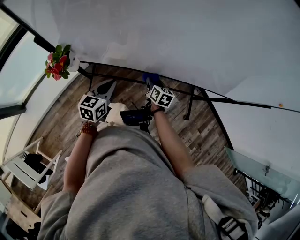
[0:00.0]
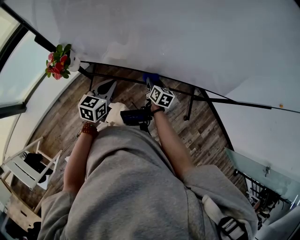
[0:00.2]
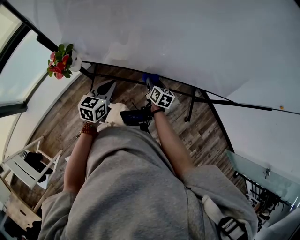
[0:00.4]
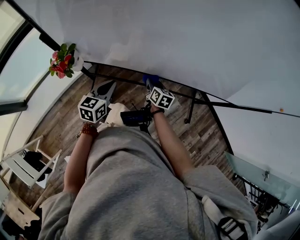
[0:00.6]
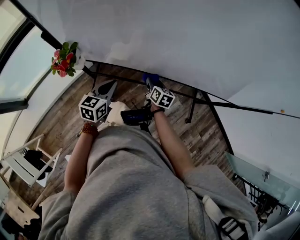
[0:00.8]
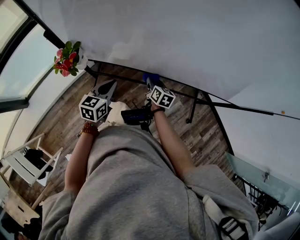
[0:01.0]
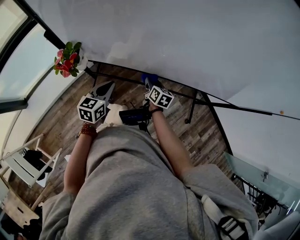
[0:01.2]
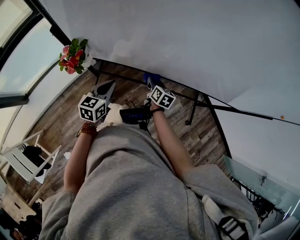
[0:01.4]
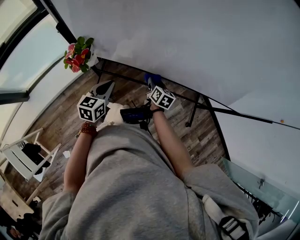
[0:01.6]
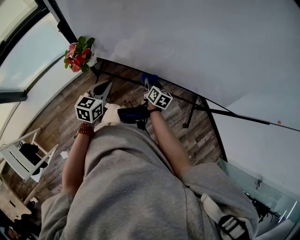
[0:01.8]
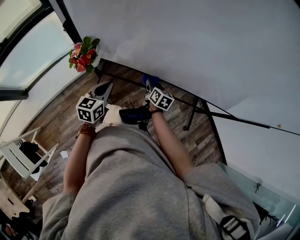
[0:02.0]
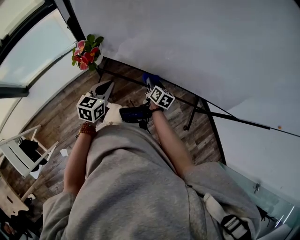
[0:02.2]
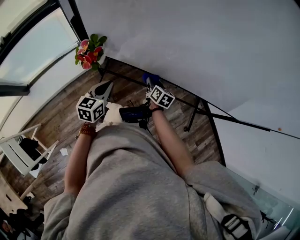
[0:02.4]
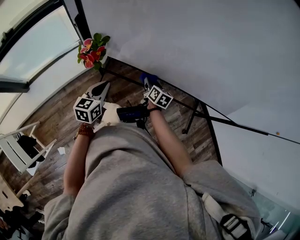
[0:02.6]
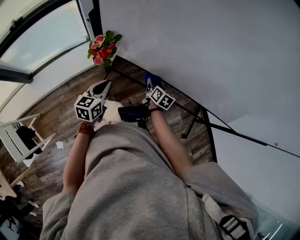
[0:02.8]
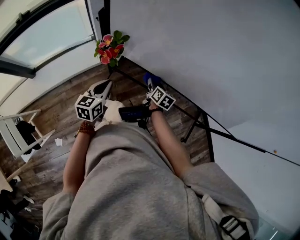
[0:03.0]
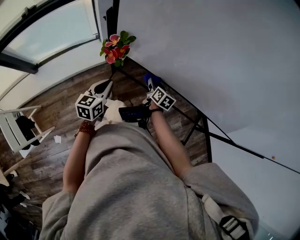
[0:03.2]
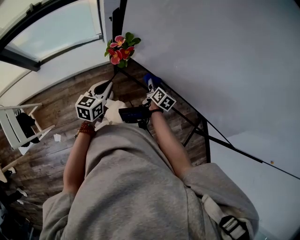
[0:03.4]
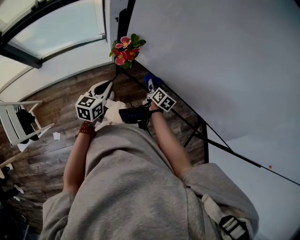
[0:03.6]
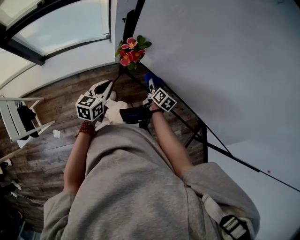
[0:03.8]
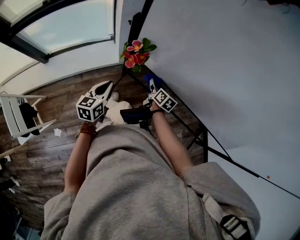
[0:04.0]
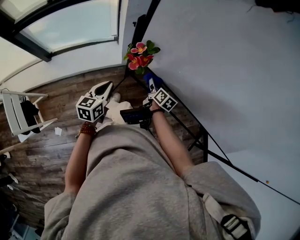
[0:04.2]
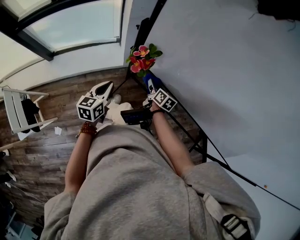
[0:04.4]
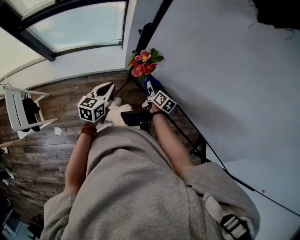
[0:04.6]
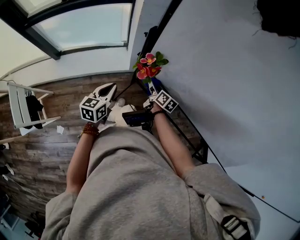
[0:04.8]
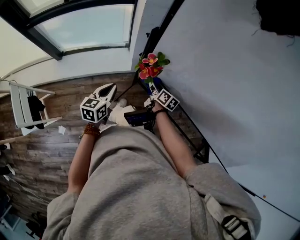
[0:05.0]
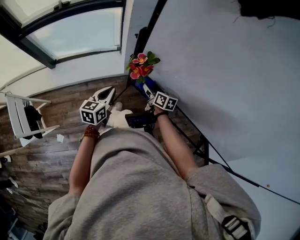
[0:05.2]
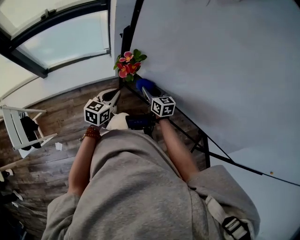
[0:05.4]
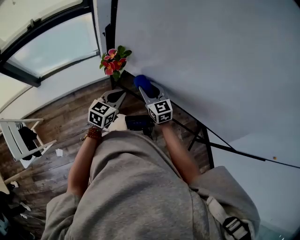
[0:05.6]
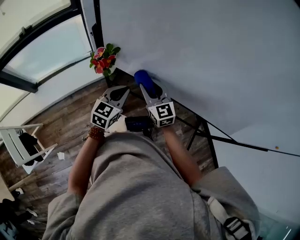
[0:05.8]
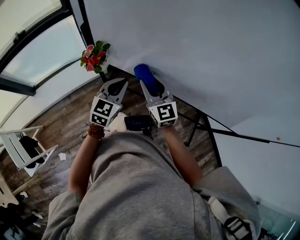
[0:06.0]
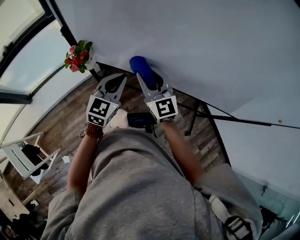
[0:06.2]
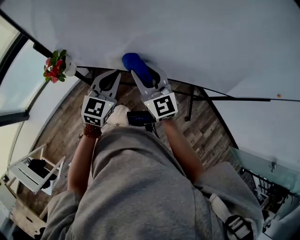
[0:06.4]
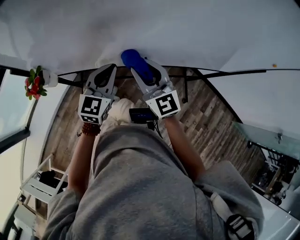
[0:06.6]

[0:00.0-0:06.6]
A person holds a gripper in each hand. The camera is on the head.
0.0 to 1.6 s: The two grippers go roughly 5 cm to the left.
1.6 to 3.2 s: Both grippers move to the left, approximately 10 cm.
3.2 to 5.0 s: The right gripper is displaced to the left and forward by approximately 15 cm, and changes its angle by roughly 30 degrees. The left gripper moves to the left, roughly 10 cm.
5.0 to 6.6 s: The left gripper moves some 40 cm, and rotates approximately 50 degrees; the right gripper ends up approximately 40 cm from where it was, and twists about 50 degrees counterclockwise, seen from behind.

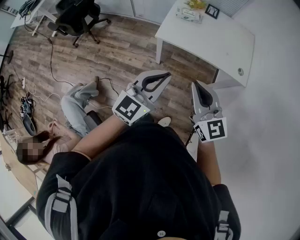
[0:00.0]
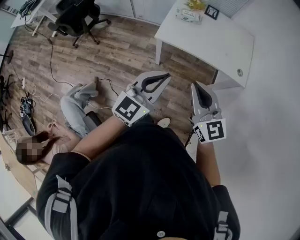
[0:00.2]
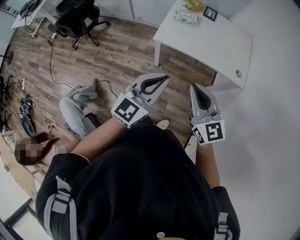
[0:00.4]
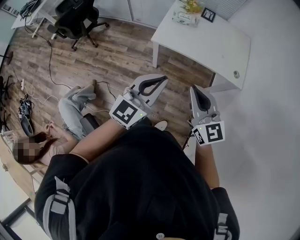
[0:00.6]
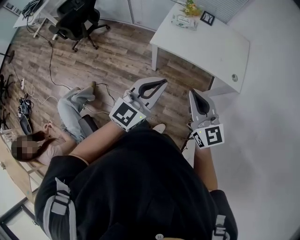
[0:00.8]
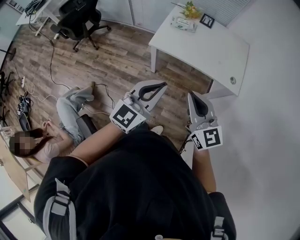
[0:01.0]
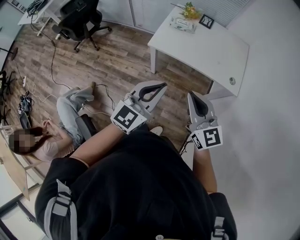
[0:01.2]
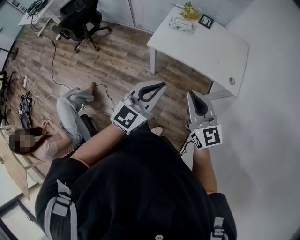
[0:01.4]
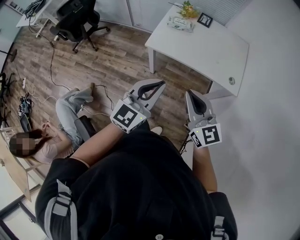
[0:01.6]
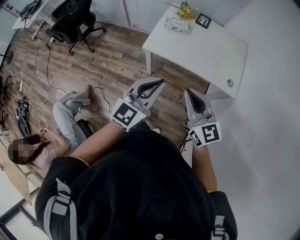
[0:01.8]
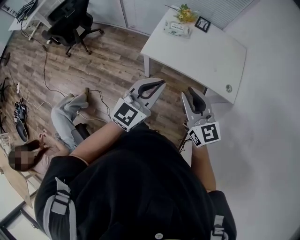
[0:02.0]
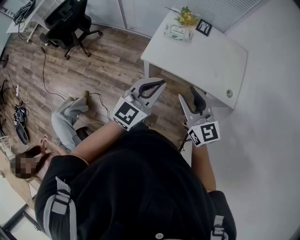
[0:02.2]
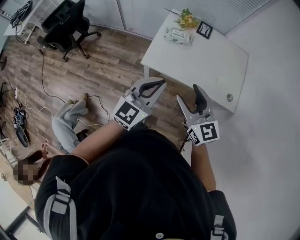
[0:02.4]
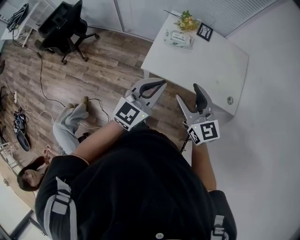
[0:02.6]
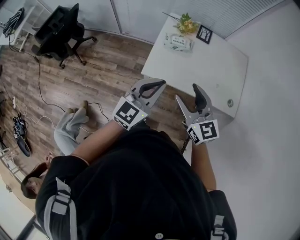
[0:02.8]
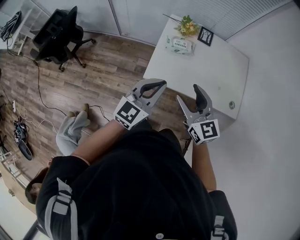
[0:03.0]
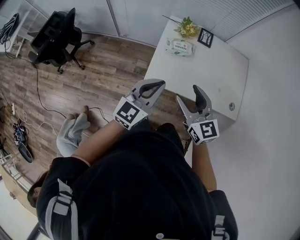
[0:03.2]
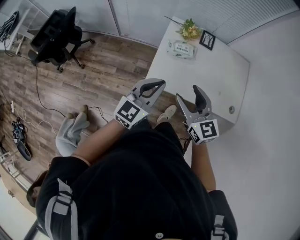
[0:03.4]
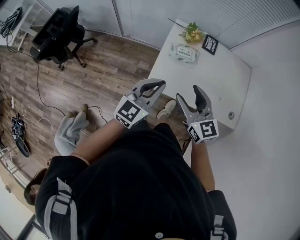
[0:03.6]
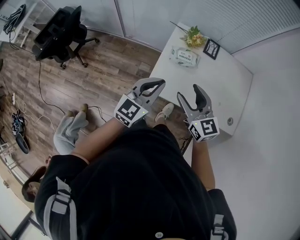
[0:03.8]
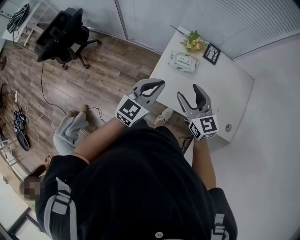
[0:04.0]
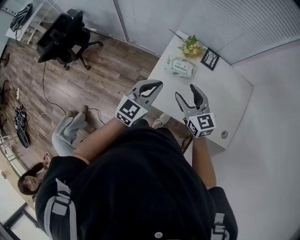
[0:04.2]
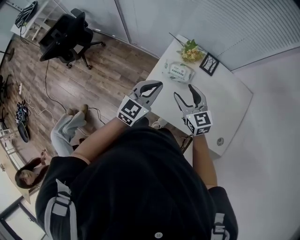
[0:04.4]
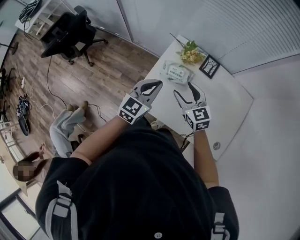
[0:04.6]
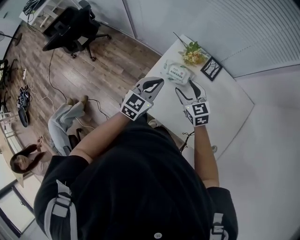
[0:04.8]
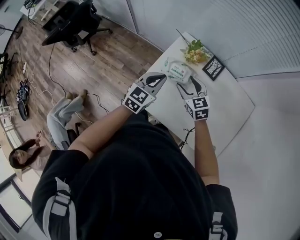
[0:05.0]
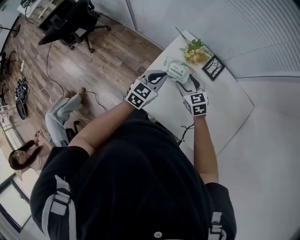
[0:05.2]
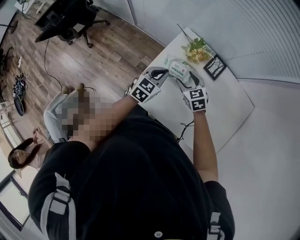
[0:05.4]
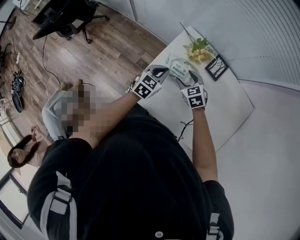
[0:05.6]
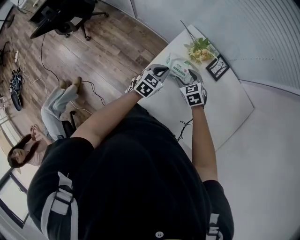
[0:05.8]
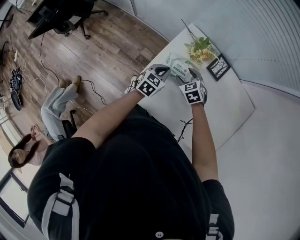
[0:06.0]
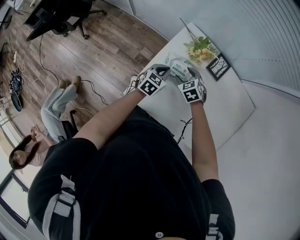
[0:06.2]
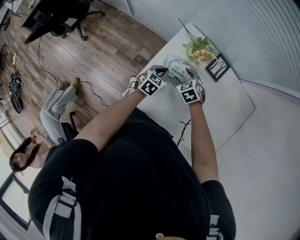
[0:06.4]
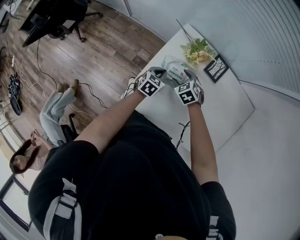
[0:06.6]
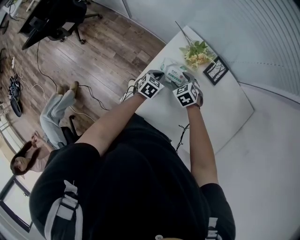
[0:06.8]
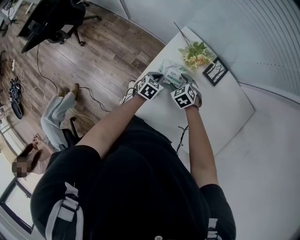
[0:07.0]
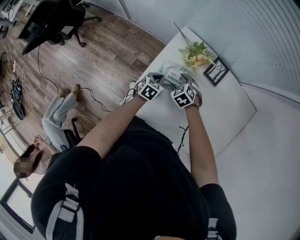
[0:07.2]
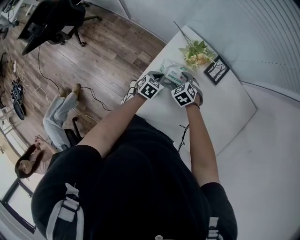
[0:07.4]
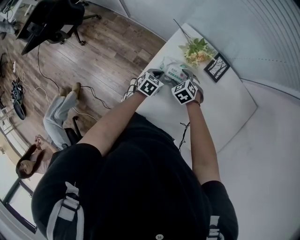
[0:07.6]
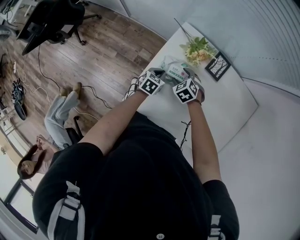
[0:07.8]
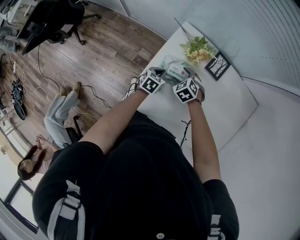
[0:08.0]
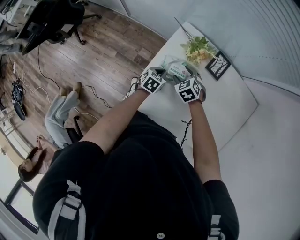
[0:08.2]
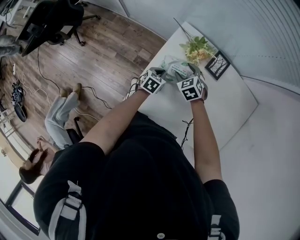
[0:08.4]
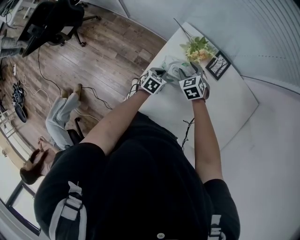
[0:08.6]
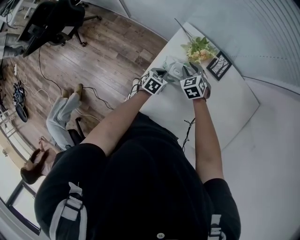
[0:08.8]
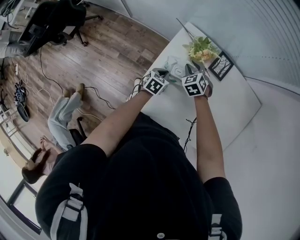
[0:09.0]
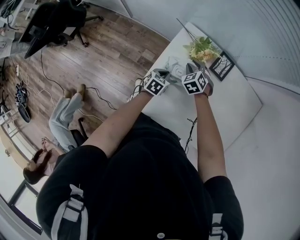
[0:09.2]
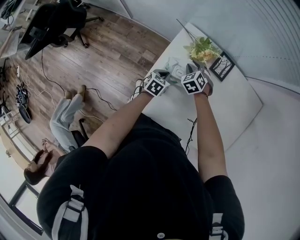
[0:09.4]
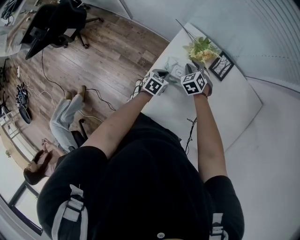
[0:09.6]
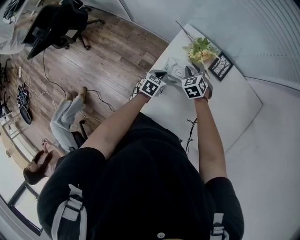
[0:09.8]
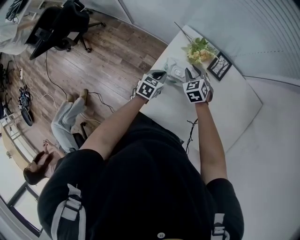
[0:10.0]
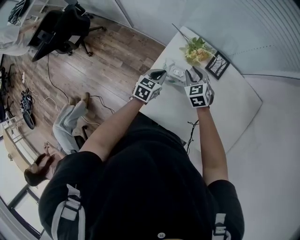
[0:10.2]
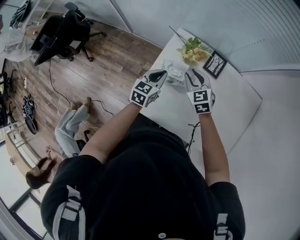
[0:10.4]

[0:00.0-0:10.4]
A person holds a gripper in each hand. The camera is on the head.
0.0 to 1.4 s: Both grippers move to the right, some 10 cm.
1.4 to 3.0 s: Both grippers travel together forward, some 30 cm. The right gripper opens.
3.0 to 4.4 s: The grippers both shift forward by approximately 20 cm.
4.4 to 6.0 s: The two grippers go roughly 25 cm downward and forward. The left gripper turns by some 30 degrees. The right gripper angles its fingers downward, by approximately 40 degrees.
6.0 to 7.4 s: The left gripper goes about 10 cm downward. The right gripper moves downward, roughly 5 cm.
7.4 to 9.0 s: The right gripper travels forward by approximately 5 cm, and closes.
9.0 to 10.4 s: The right gripper moves upward and backward, some 15 cm, and changes its angle by approximately 20 degrees, while the left gripper goes roughly 15 cm upward, and swivels roughly 20 degrees.

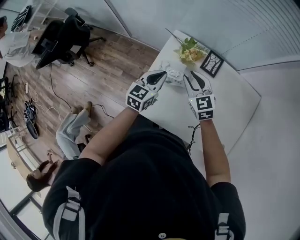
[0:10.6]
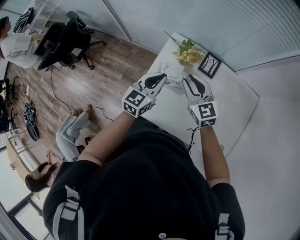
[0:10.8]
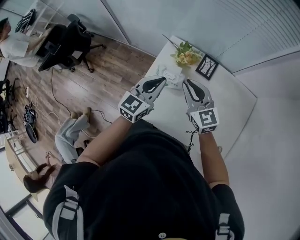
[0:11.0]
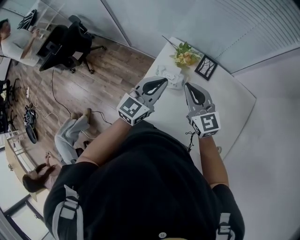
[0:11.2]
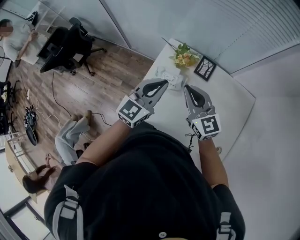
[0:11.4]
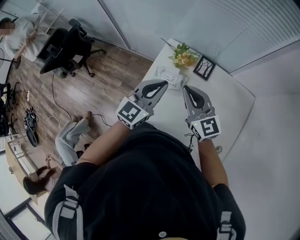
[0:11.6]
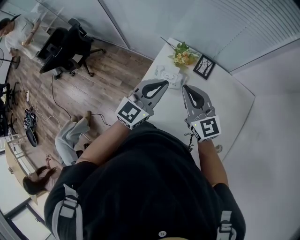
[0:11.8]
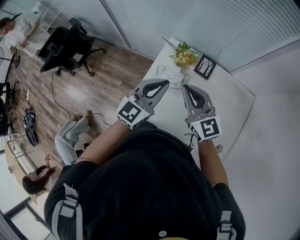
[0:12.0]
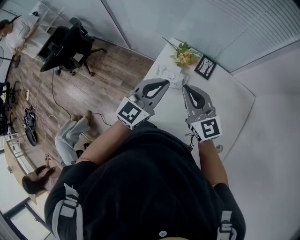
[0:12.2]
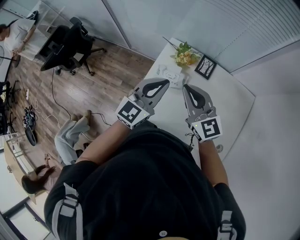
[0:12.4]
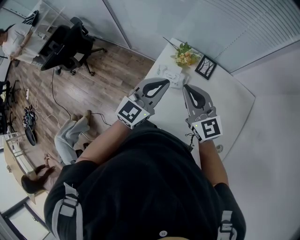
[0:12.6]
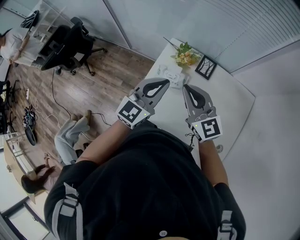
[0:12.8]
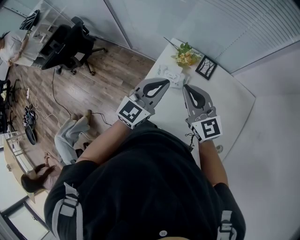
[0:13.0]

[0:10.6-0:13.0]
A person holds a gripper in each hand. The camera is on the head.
10.6 to 11.8 s: The two grippers go approximately 20 cm upward and backward. The left gripper changes its angle by approximately 20 degrees, while the right gripper turns by some 20 degrees, and closes.
11.8 to 13.0 s: The grippers make only small movements.

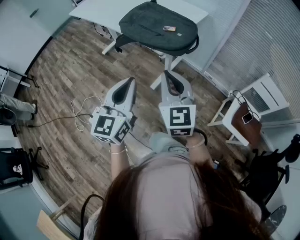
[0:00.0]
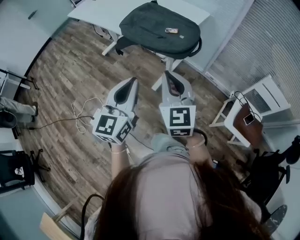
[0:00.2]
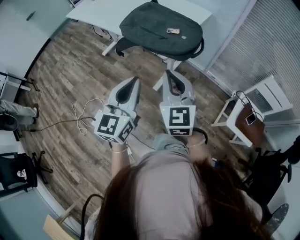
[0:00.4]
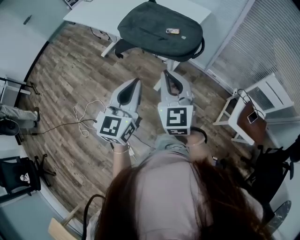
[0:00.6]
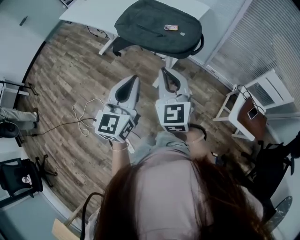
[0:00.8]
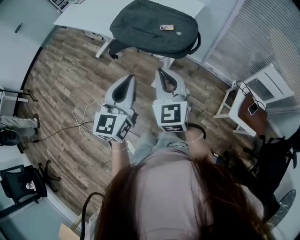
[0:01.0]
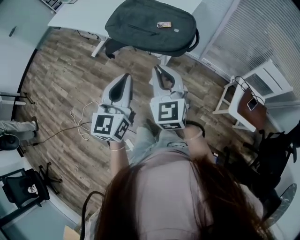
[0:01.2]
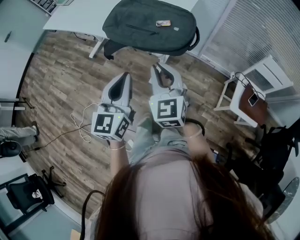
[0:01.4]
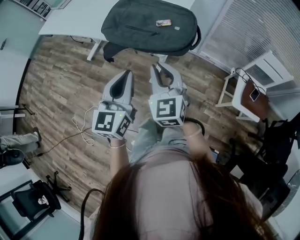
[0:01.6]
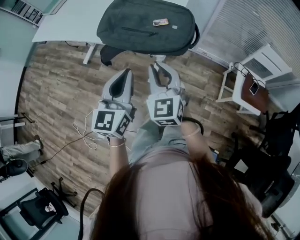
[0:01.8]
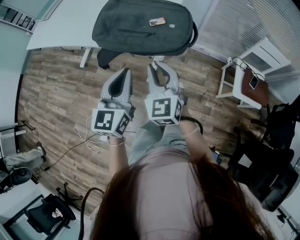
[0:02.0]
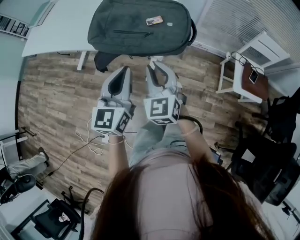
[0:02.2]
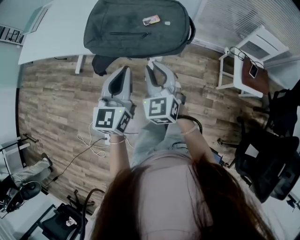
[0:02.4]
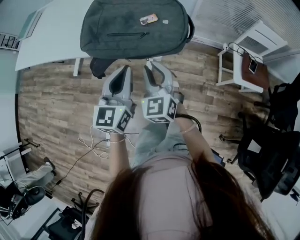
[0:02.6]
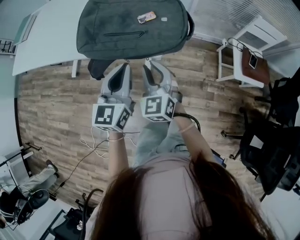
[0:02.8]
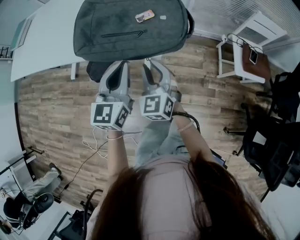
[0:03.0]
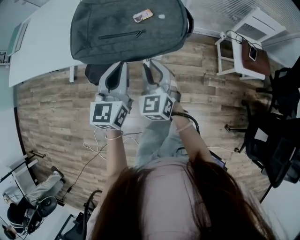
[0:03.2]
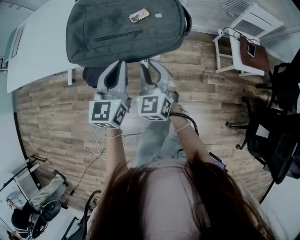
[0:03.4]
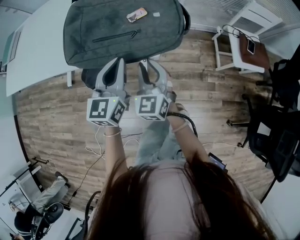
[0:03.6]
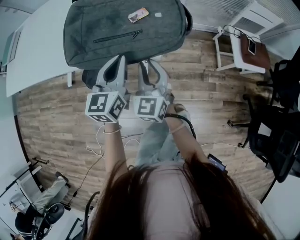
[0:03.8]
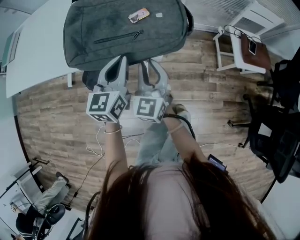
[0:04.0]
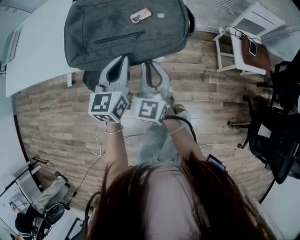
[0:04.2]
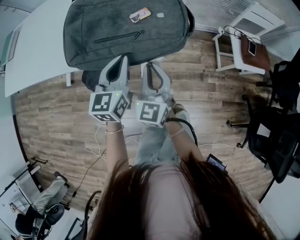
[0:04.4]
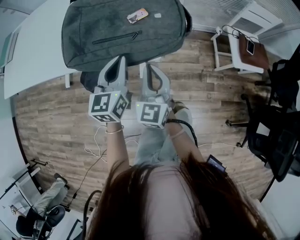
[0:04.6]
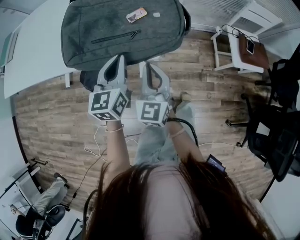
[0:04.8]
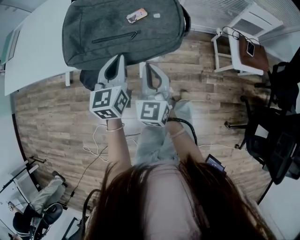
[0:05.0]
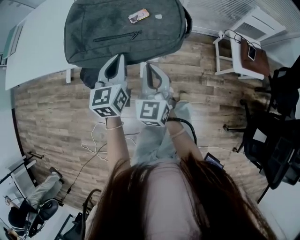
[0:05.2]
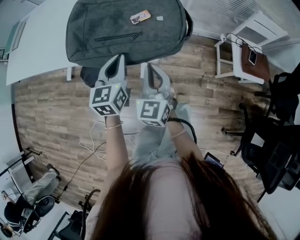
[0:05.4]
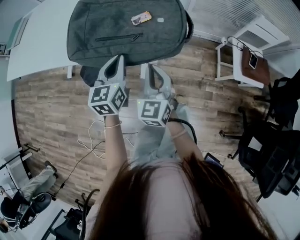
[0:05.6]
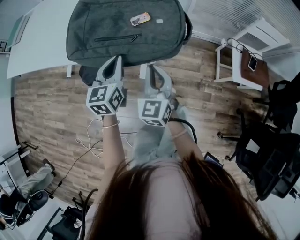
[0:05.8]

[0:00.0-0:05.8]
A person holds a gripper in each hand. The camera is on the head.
0.0 to 1.4 s: The left gripper heads forward and to the left, covering about 15 cm. Meanwhile the right gripper travels forward, to the left and downward by about 15 cm.
1.4 to 2.8 s: The right gripper goes approximately 15 cm downward, forward and to the left, and swivels some 20 degrees. The left gripper shifts about 15 cm forward and downward, and changes its angle by roughly 20 degrees.
2.8 to 4.4 s: The left gripper moves forward and downward, roughly 10 cm; the right gripper rotates some 20 degrees.
4.4 to 5.8 s: The grippers stay close to where they were, moving slightly.
